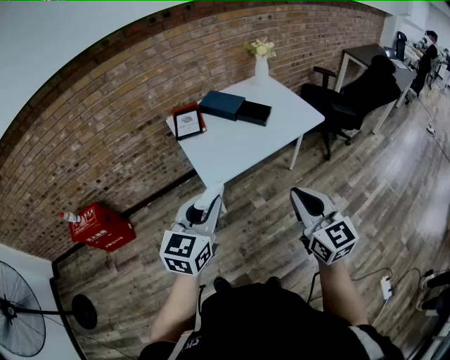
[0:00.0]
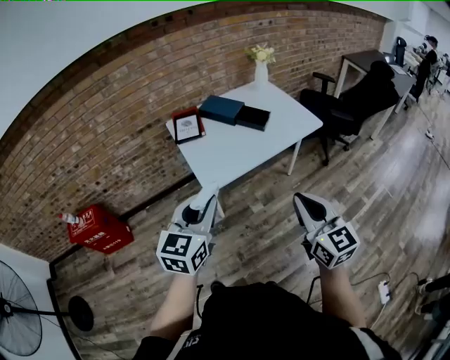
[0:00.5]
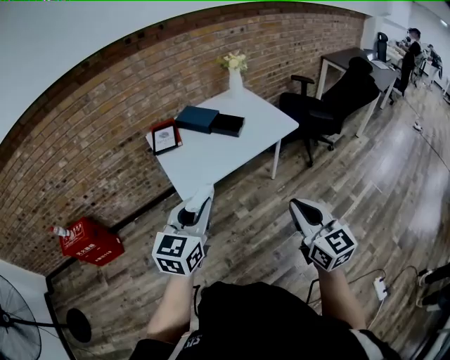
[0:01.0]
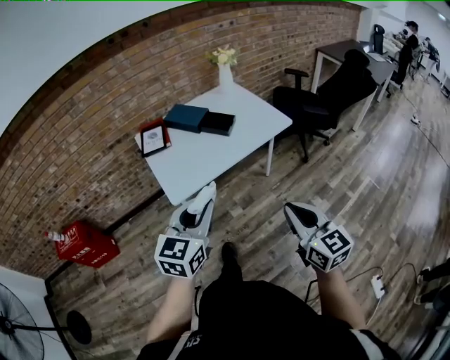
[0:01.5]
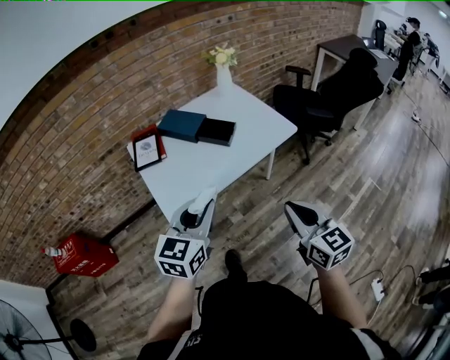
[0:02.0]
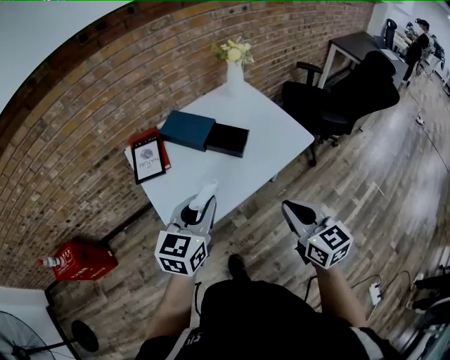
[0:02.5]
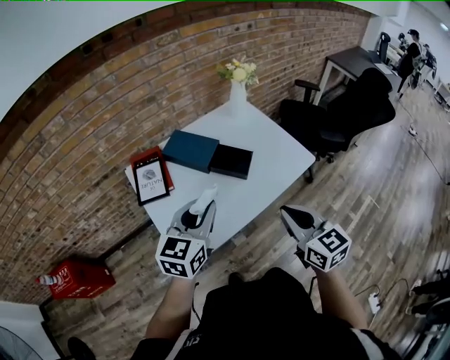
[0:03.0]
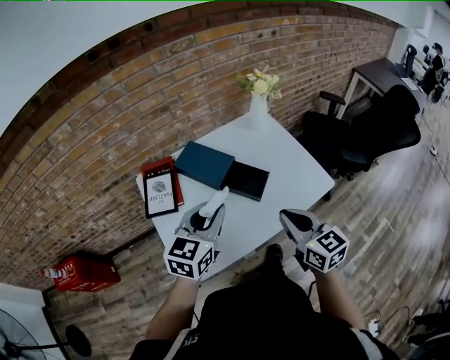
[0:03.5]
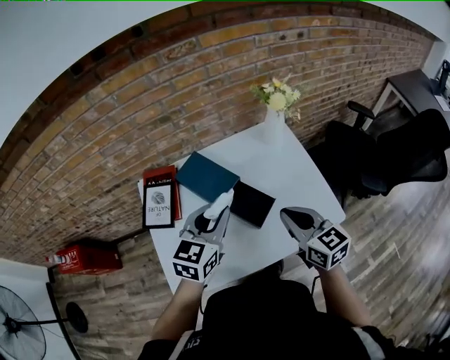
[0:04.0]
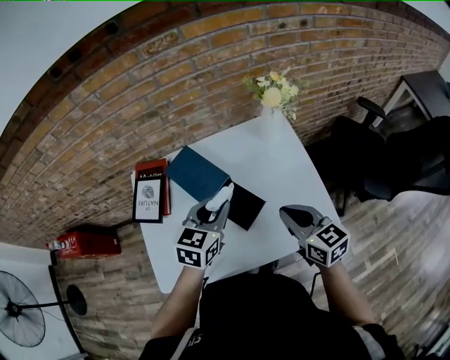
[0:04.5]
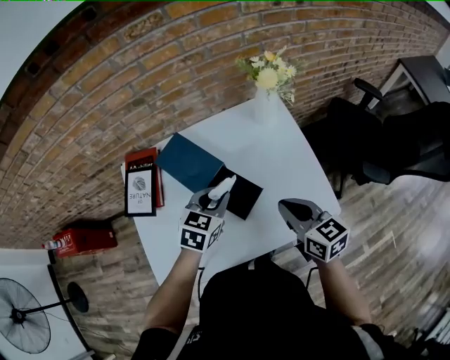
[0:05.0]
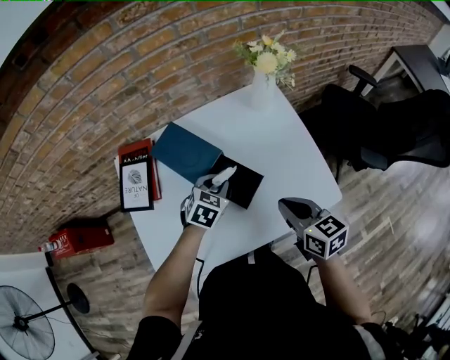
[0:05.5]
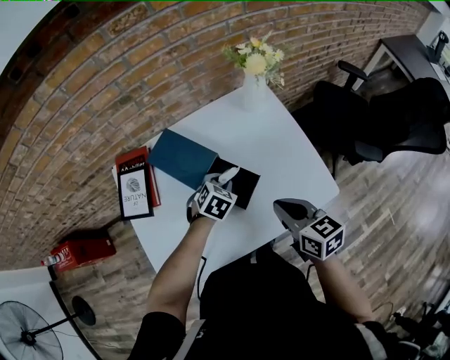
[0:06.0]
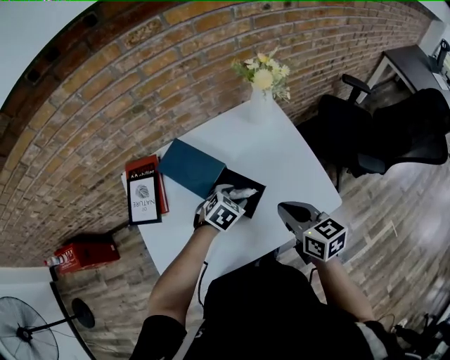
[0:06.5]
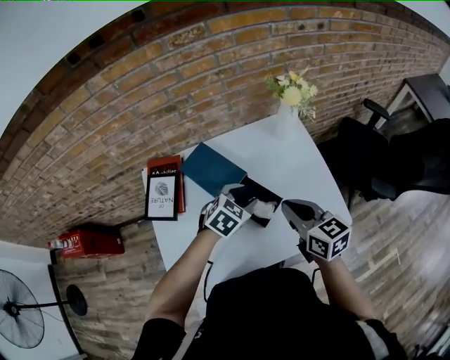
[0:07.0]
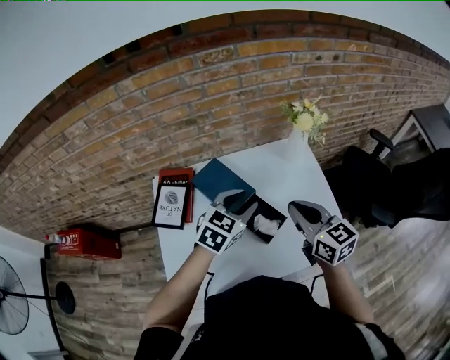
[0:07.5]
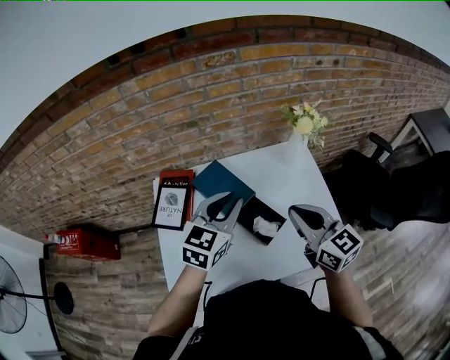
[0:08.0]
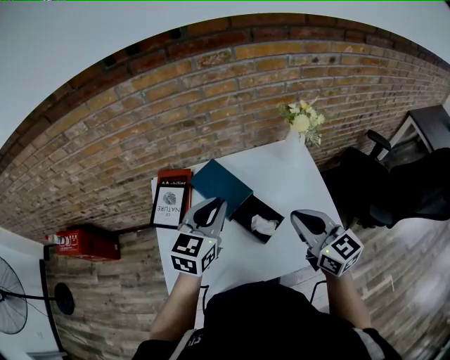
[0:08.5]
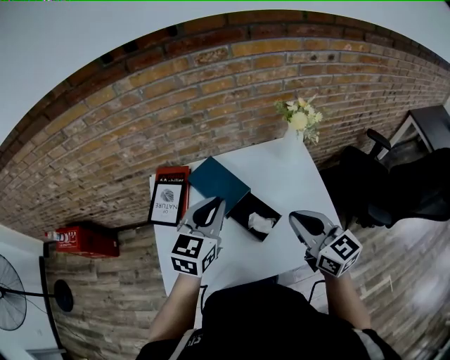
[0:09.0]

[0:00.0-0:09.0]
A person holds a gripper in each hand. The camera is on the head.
0:00.0 to 0:02.0: The right gripper moves to the right and forward, about 20 cm. Meanwhile the left gripper is displaced forward and to the right by roughly 20 cm.
0:02.0 to 0:04.5: Both grippers are carried forward, approximately 50 cm. The right gripper rotates roughly 30 degrees. Meanwhile the left gripper rotates roughly 20 degrees.
0:04.5 to 0:07.0: The left gripper shifts some 10 cm downward, swivels roughly 30 degrees, and opens its fingers; the right gripper goes approximately 5 cm to the left.
0:07.0 to 0:09.0: The left gripper heads upward and to the left, covering approximately 20 cm, turns by approximately 40 degrees, and closes up. Meanwhile the right gripper heads upward, covering some 10 cm.

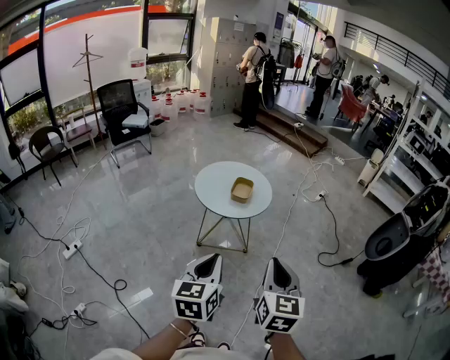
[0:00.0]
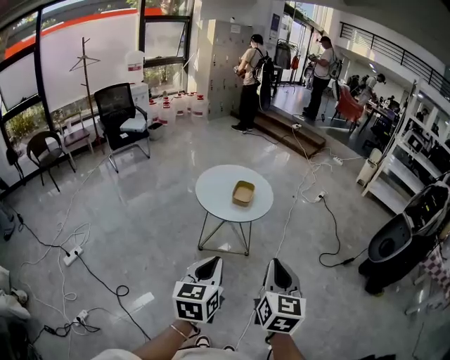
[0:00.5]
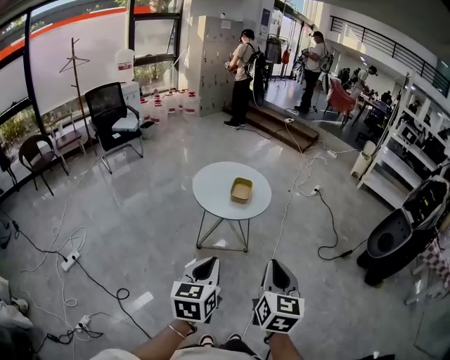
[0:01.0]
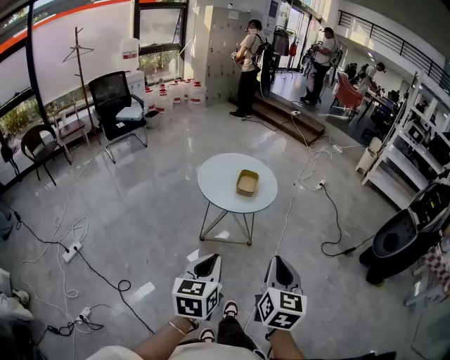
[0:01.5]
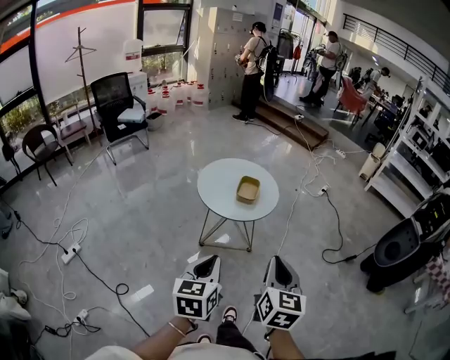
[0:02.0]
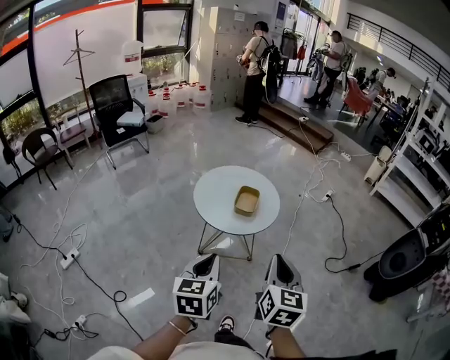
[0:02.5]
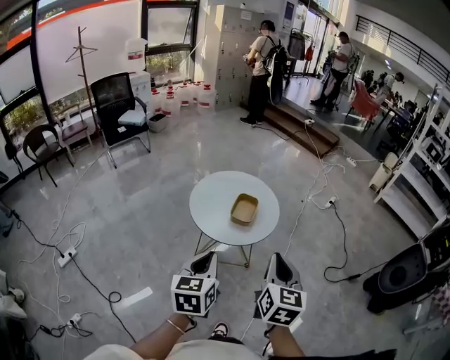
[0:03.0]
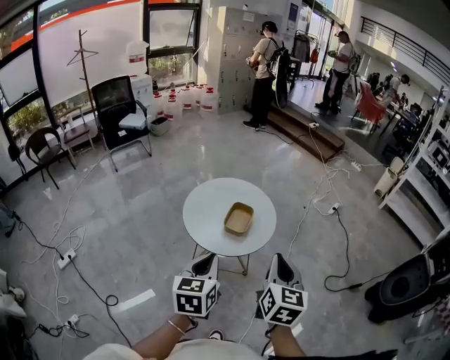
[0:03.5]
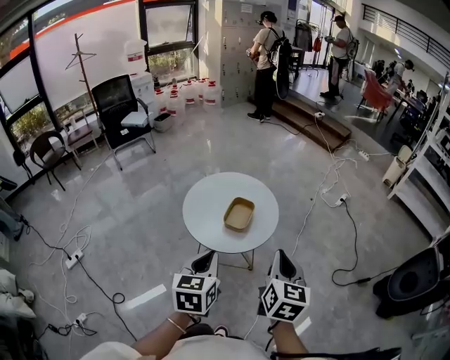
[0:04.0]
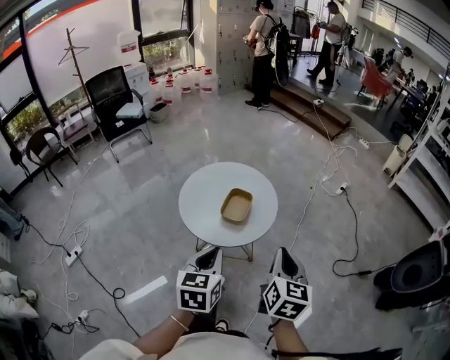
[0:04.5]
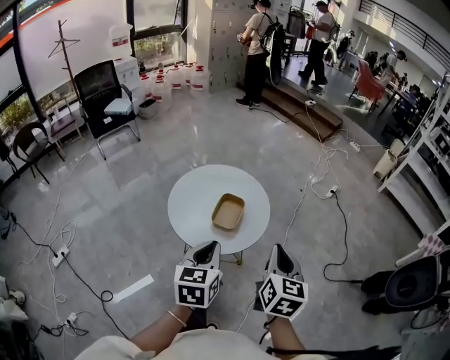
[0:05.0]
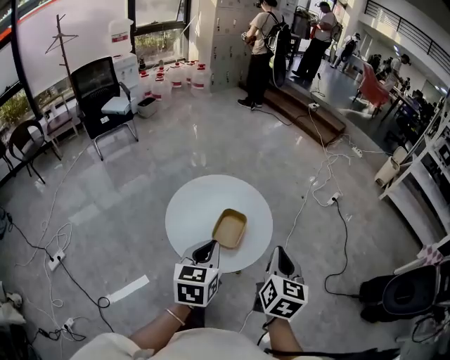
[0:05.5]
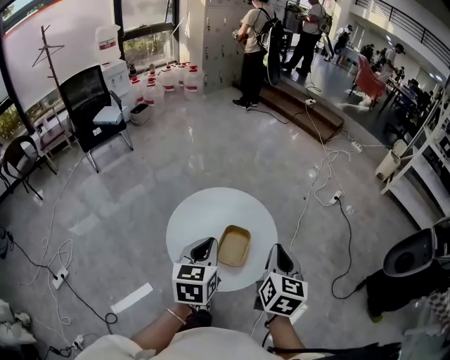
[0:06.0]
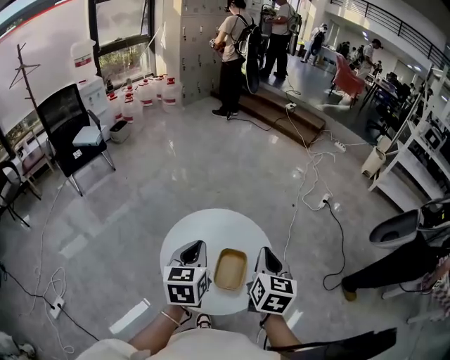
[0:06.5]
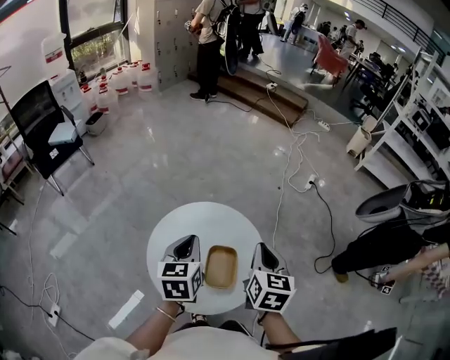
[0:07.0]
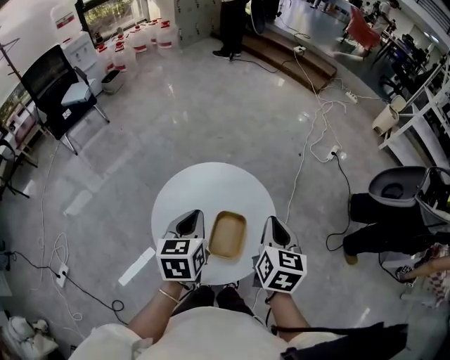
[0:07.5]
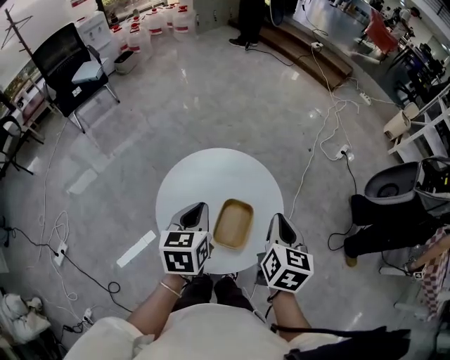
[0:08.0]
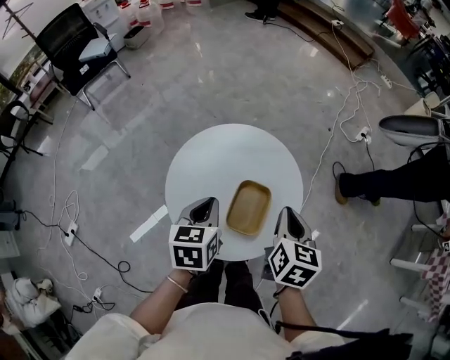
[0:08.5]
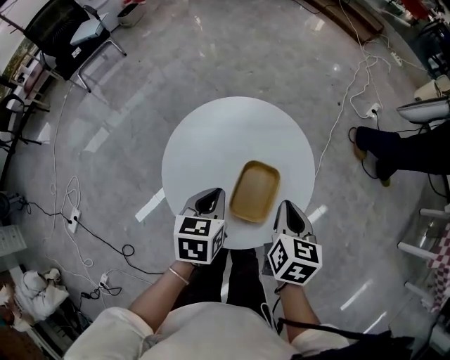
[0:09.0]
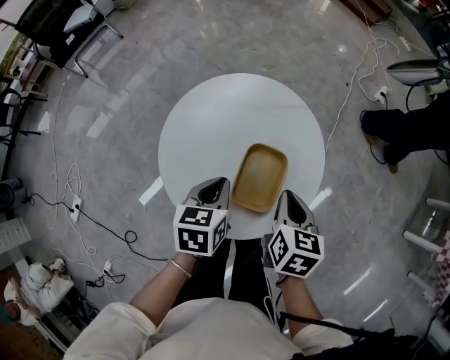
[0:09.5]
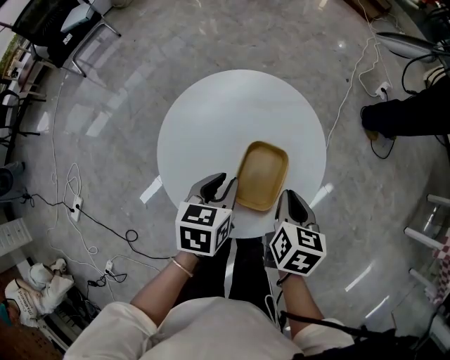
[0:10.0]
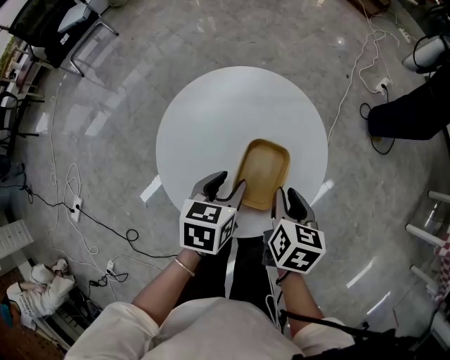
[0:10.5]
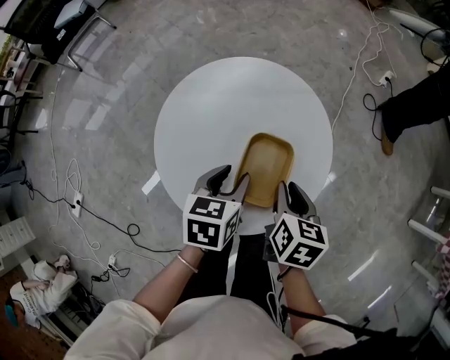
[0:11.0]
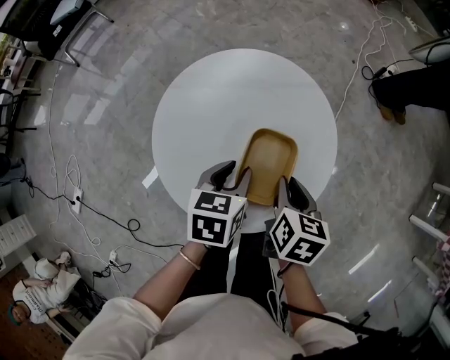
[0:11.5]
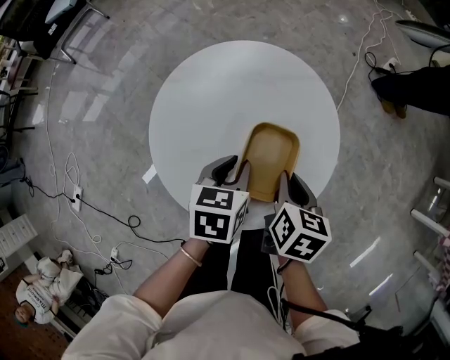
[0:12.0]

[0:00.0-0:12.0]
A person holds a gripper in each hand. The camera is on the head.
0:00.0 to 0:02.0: The left gripper changes place by roughly 10 cm. Meanwhile the right gripper heads forward, covering roughly 5 cm.
0:02.0 to 0:04.0: The grippers both shift forward by approximately 20 cm.
0:04.0 to 0:06.0: The grippers both shift forward by approximately 20 cm.
0:06.0 to 0:08.0: The grippers both shift forward and downward by approximately 10 cm.
0:08.0 to 0:10.0: The left gripper is displaced downward by some 15 cm, and opens its fingers. Meanwhile the right gripper is displaced downward and backward by approximately 15 cm.
0:10.0 to 0:12.0: The grippers stay close to where they were, moving slightly.

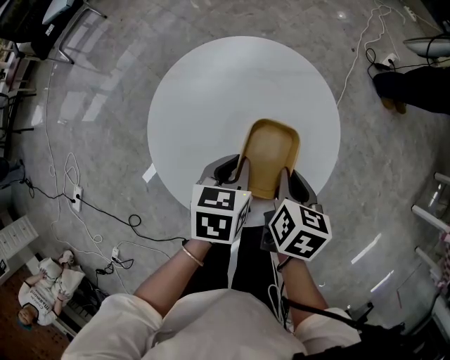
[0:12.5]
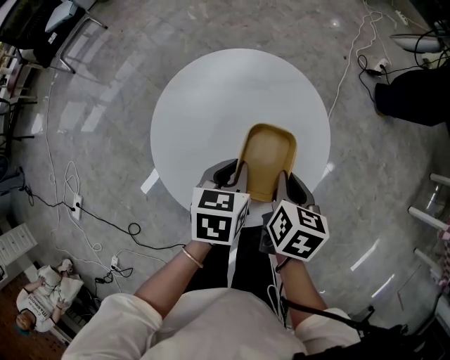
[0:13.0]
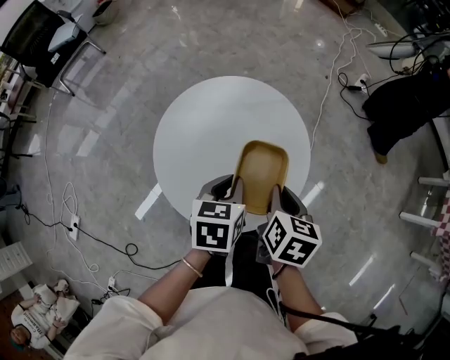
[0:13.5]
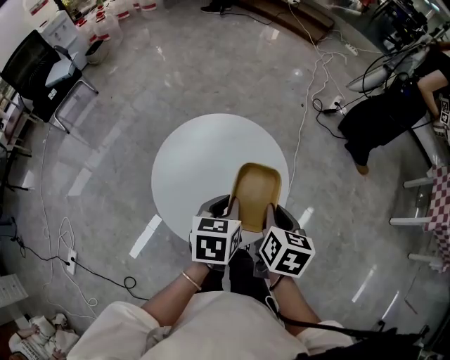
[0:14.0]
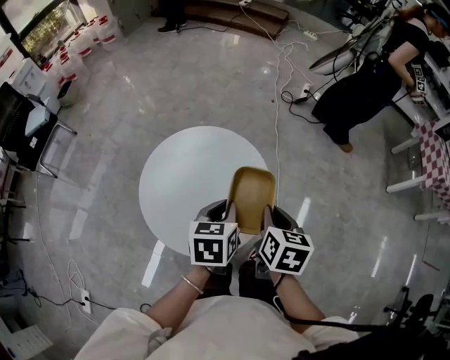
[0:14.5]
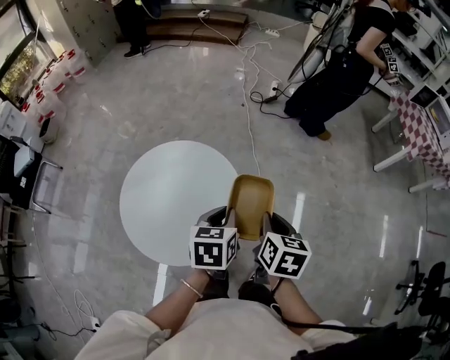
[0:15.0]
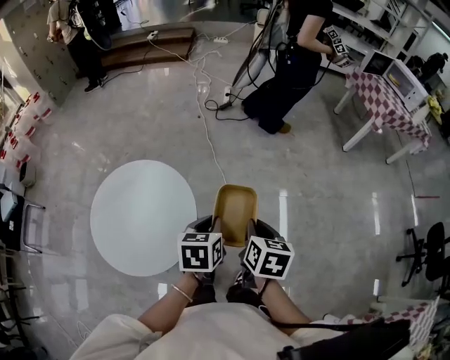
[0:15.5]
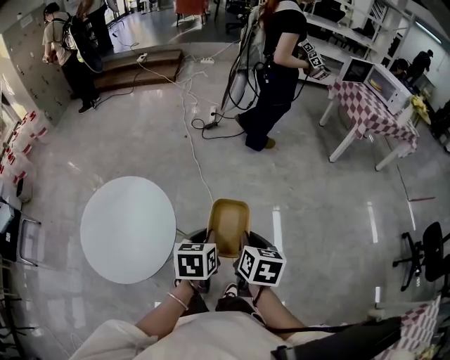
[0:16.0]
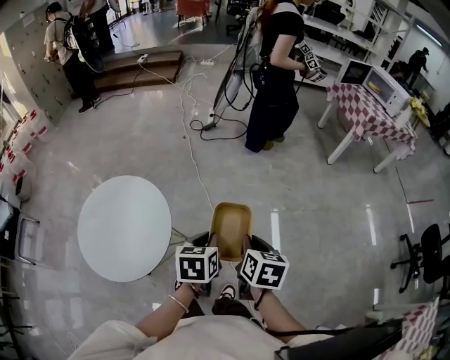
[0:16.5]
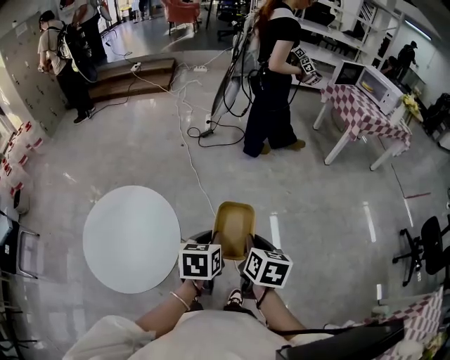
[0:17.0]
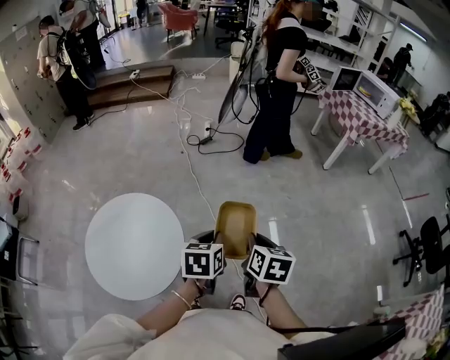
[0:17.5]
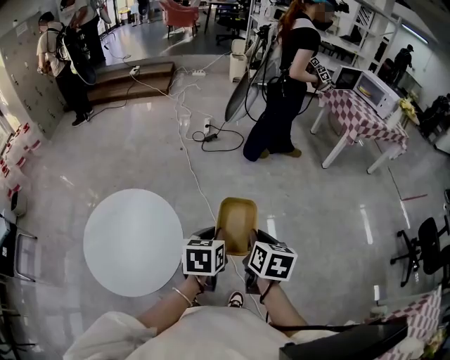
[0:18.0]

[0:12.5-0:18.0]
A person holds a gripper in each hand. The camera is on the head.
0:12.5 to 0:14.5: Both grippers travel together upward and to the right, some 15 cm.
0:14.5 to 0:16.0: Both grippers travel together to the right, roughly 30 cm. The right gripper rotates roughly 20 degrees; the left gripper rotates about 20 degrees.
0:16.0 to 0:18.0: The grippers move only a little.
